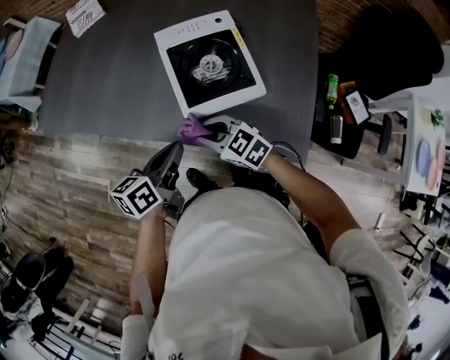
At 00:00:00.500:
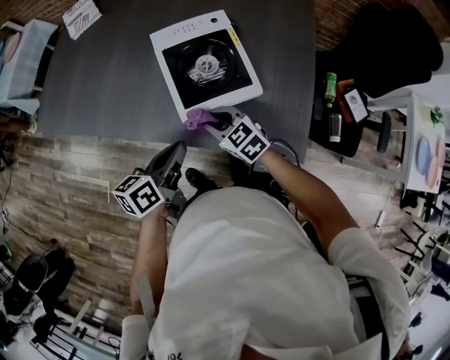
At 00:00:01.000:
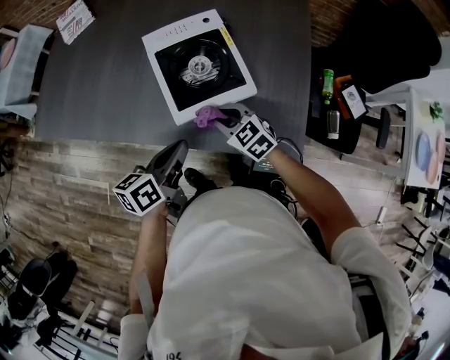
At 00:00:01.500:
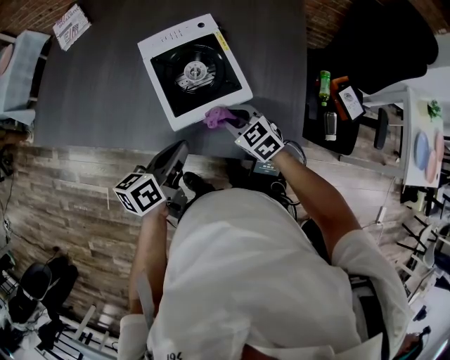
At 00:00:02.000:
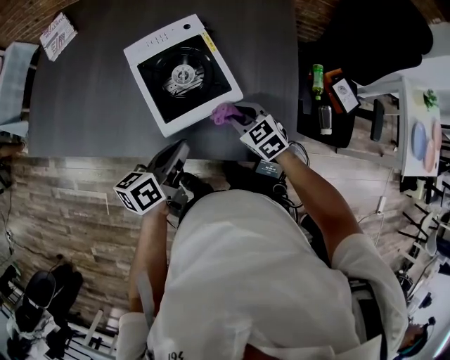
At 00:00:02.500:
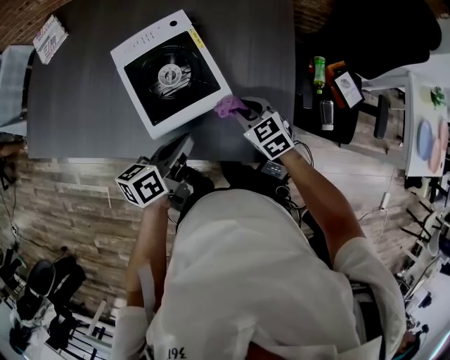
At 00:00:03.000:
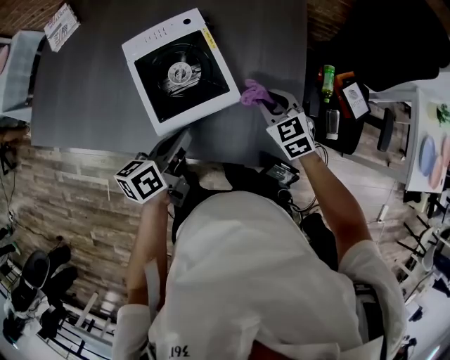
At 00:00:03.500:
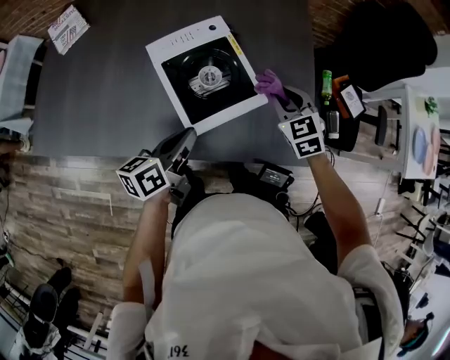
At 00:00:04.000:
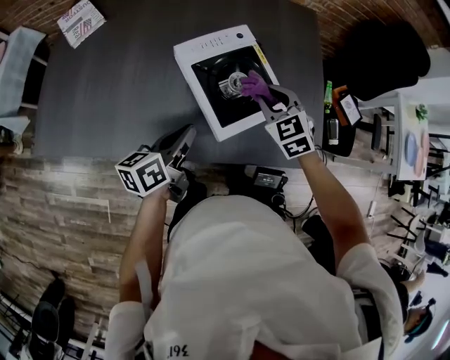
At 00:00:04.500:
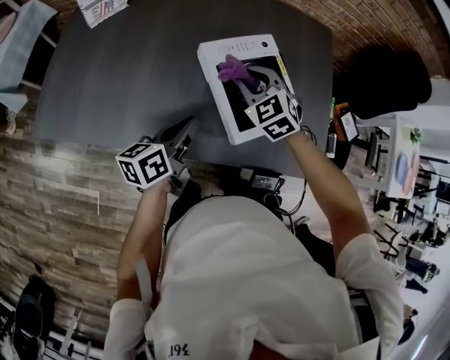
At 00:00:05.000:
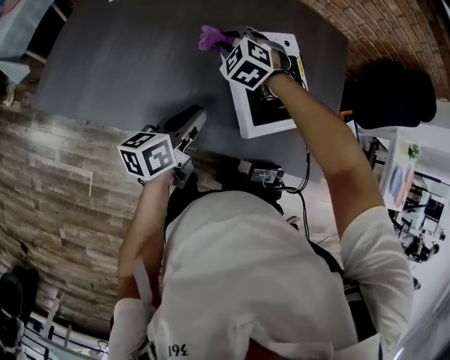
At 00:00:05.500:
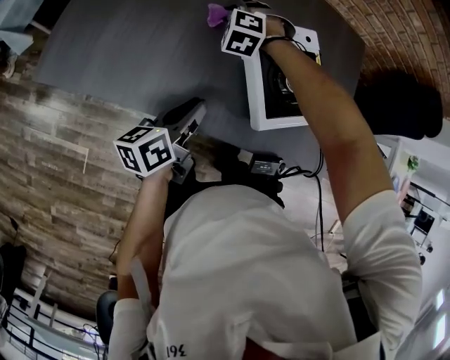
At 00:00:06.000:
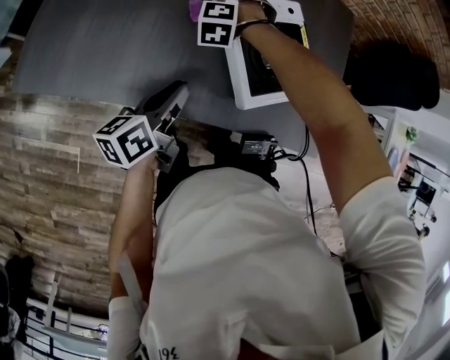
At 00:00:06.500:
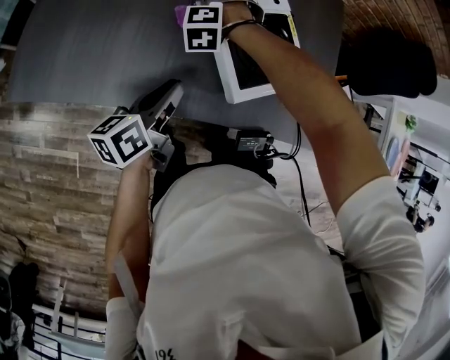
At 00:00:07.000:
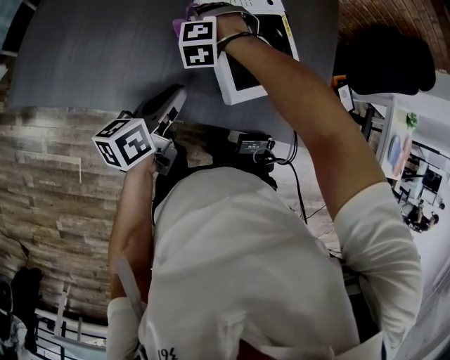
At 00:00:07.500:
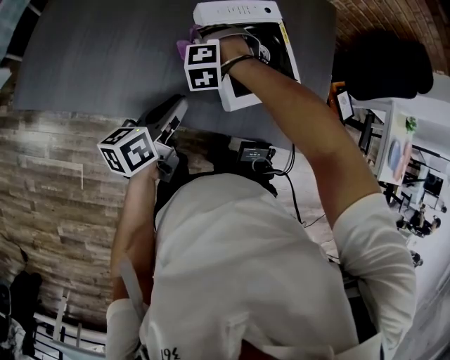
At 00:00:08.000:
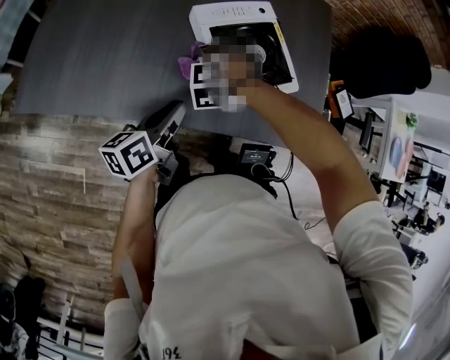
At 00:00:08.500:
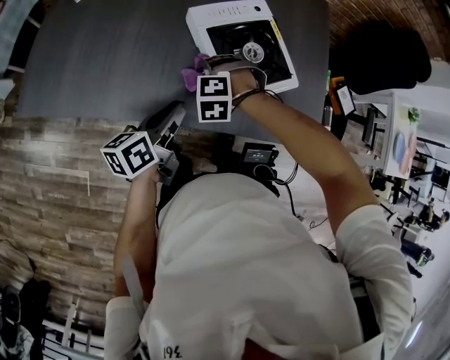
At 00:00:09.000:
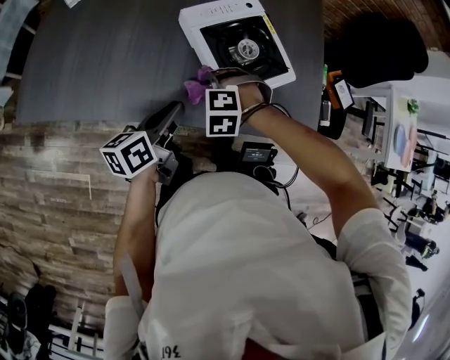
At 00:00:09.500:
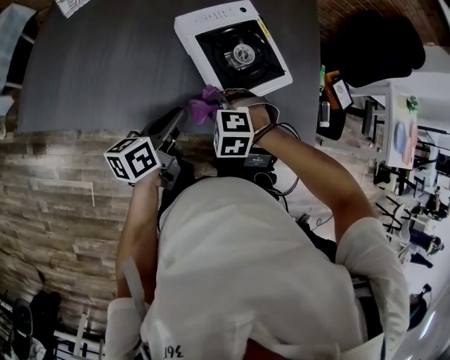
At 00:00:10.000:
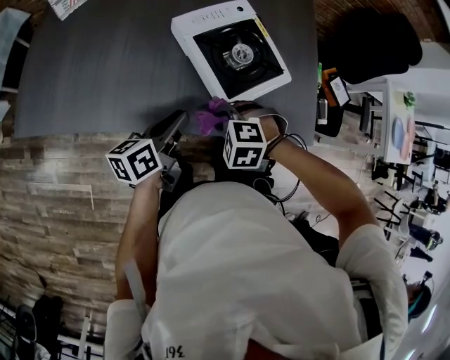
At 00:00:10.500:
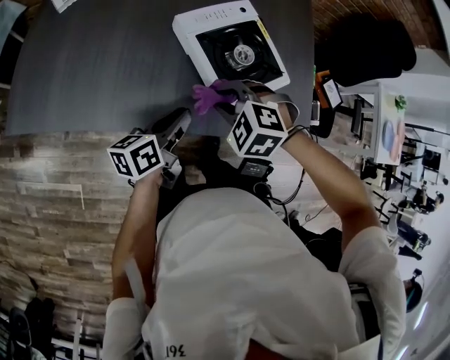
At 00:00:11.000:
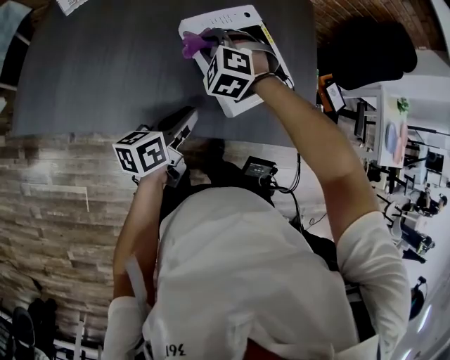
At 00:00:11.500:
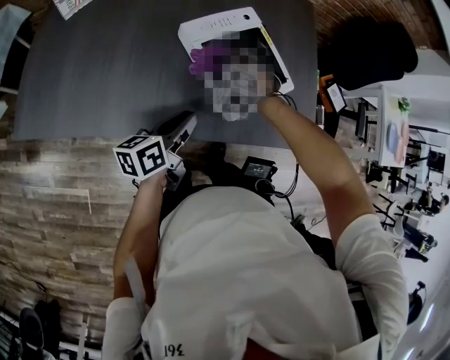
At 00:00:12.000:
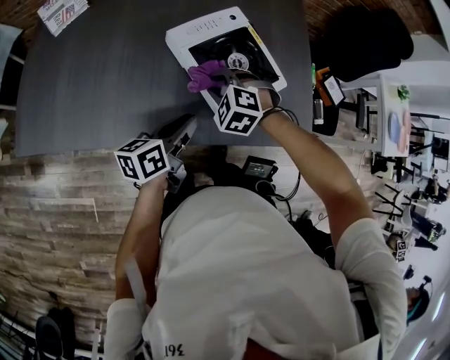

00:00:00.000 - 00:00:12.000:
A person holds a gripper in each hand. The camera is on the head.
00:00:00.000 - 00:00:02.000: The right gripper heads to the right, covering roughly 15 cm, and turns by roughly 30 degrees. The left gripper moves to the right, approximately 10 cm.
00:00:02.000 - 00:00:04.000: The right gripper is displaced upward, to the left and forward by approximately 15 cm, and rotates about 20 degrees. The left gripper heads to the left, covering approximately 15 cm.
00:00:04.000 - 00:00:06.000: The right gripper goes roughly 30 cm to the left and downward, and rolls counterclockwise, seen from behind, by about 60 degrees. The left gripper moves to the left, about 10 cm.
00:00:06.000 - 00:00:08.000: The right gripper goes approximately 15 cm backward and to the right. The left gripper moves roughly 5 cm.
00:00:08.000 - 00:00:10.000: The right gripper moves approximately 15 cm, and changes its angle by about 20 degrees.

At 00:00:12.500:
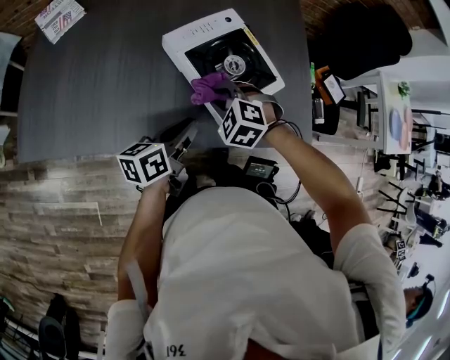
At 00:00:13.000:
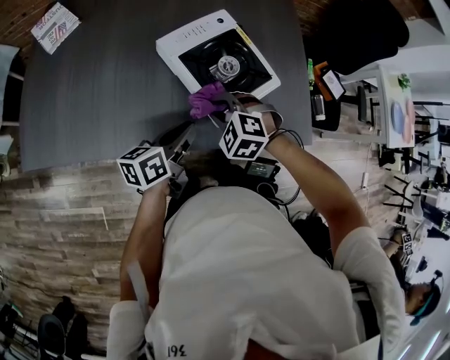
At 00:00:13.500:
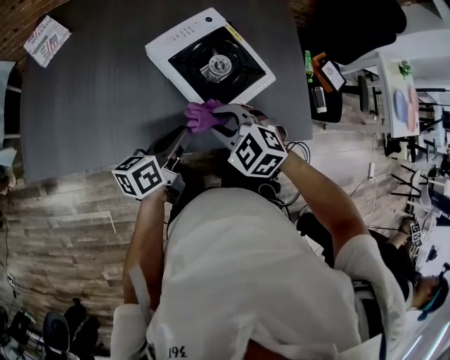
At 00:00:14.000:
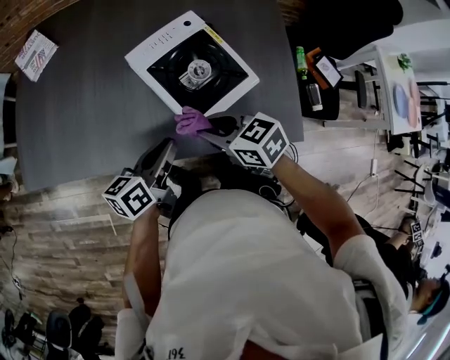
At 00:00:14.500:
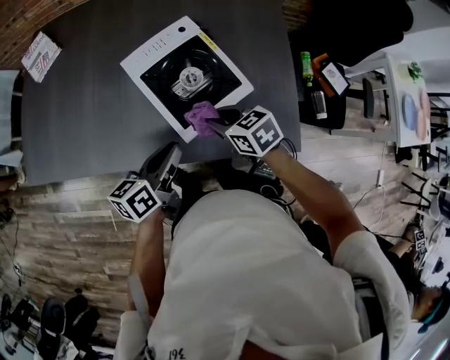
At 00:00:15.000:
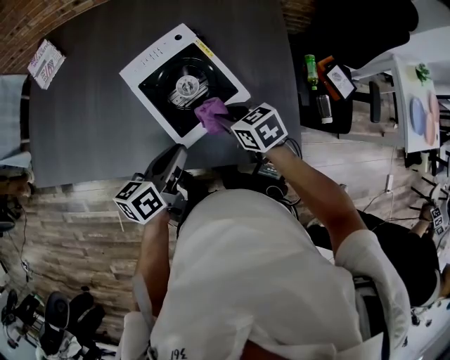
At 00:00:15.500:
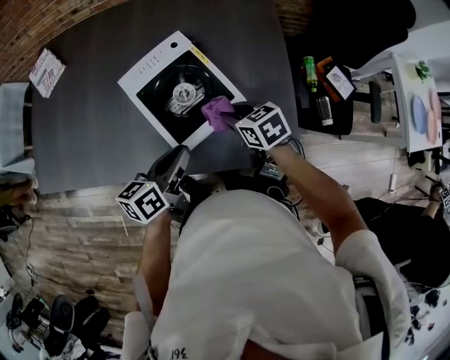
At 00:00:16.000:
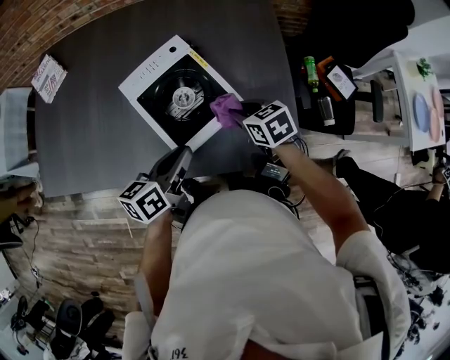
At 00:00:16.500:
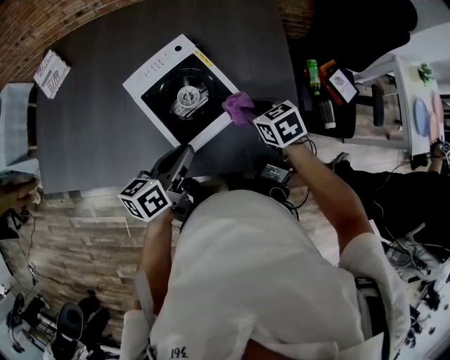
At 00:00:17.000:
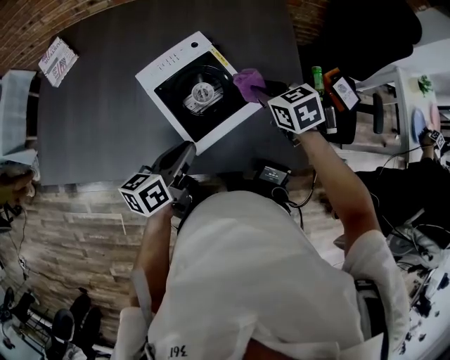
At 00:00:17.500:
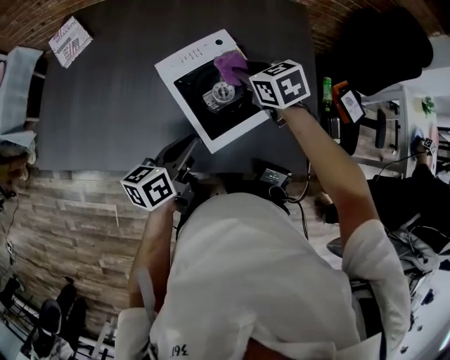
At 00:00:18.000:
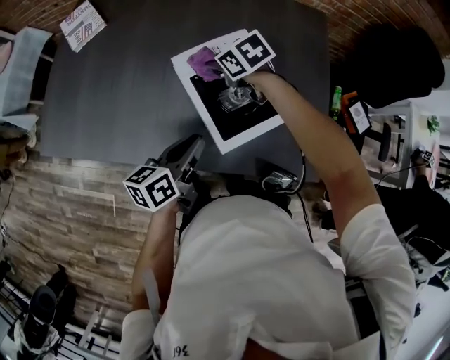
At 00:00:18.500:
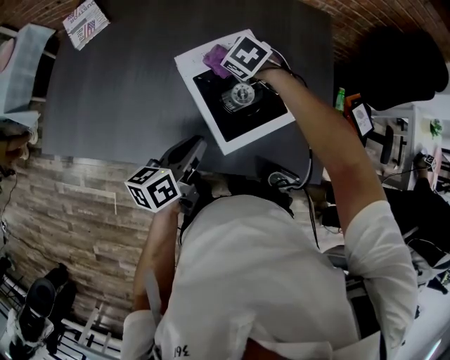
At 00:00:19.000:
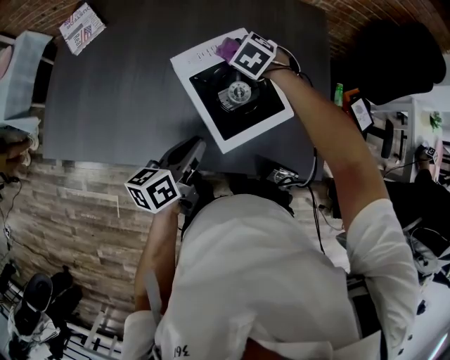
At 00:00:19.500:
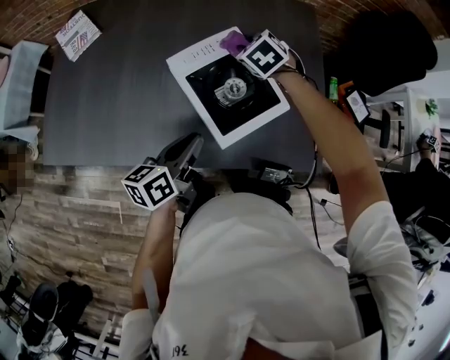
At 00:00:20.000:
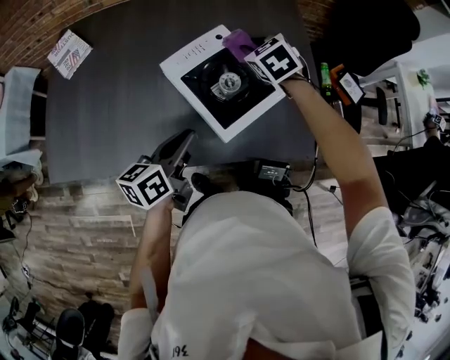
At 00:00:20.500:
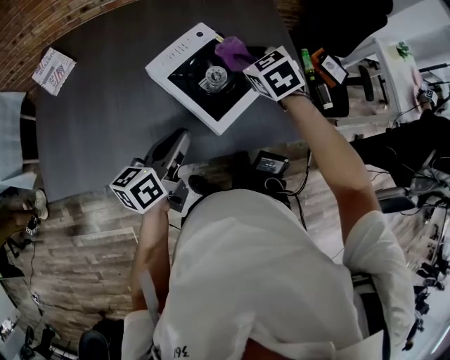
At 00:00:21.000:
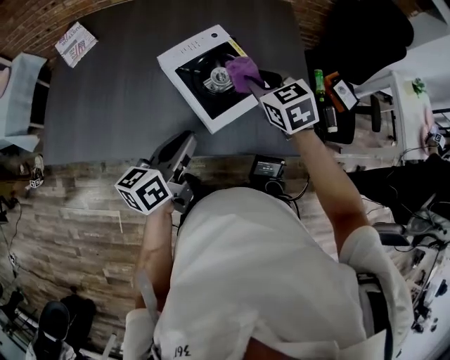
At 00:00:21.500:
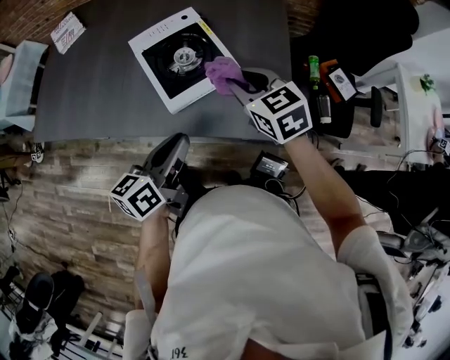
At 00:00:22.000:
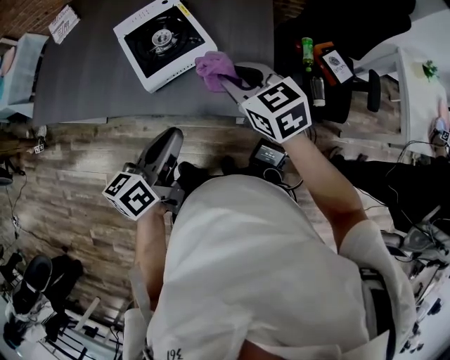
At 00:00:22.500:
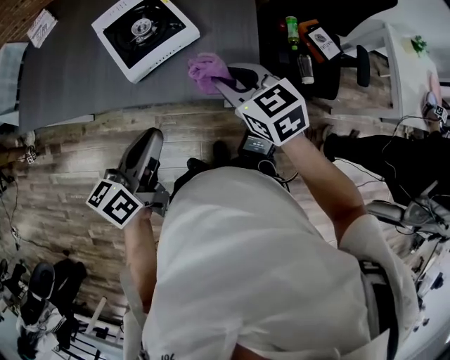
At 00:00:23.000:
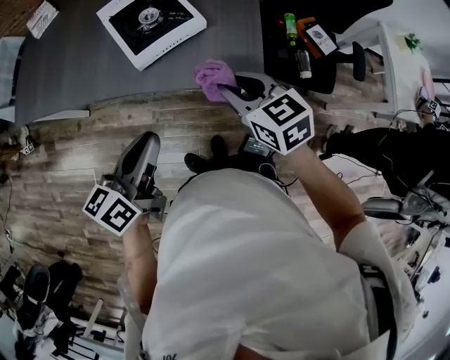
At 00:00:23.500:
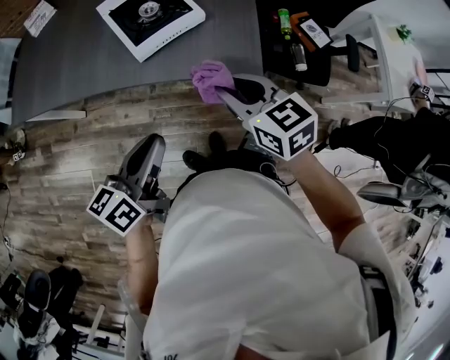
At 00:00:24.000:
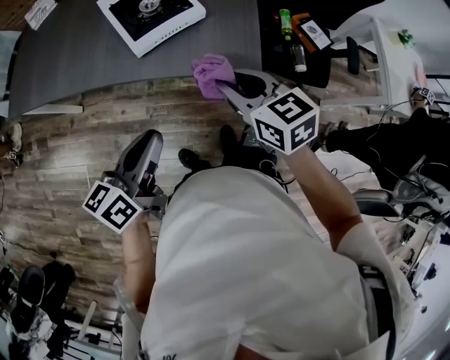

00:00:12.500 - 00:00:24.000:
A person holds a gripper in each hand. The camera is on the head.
00:00:12.500 - 00:00:14.500: The left gripper is displaced to the right by about 5 cm; the right gripper travels to the right by roughly 10 cm, and rotates around the line of its fingers by approximately 50 degrees, clockwise from behind.
00:00:14.500 - 00:00:16.500: The left gripper shifts approximately 5 cm to the right, while the right gripper heads to the right and forward, covering roughly 15 cm.
00:00:16.500 - 00:00:18.500: The left gripper is displaced to the left by some 10 cm, while the right gripper moves to the left and forward, approximately 25 cm, and swivels roughly 40 degrees.
00:00:18.500 - 00:00:20.000: The right gripper moves to the right and upward, some 15 cm, and turns by roughly 30 degrees.
00:00:20.000 - 00:00:22.000: The right gripper changes place by about 30 cm, and rotates about 30 degrees. Meanwhile the left gripper ends up some 30 cm from where it was.
00:00:22.000 - 00:00:24.000: The right gripper goes roughly 15 cm backward. The left gripper shifts roughly 10 cm backward and to the left.

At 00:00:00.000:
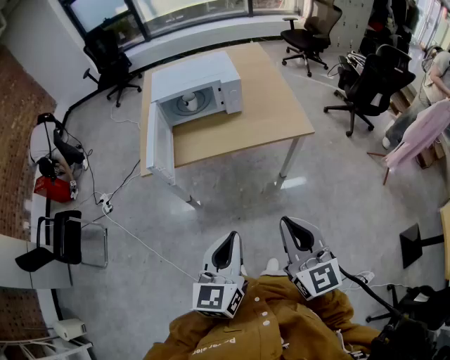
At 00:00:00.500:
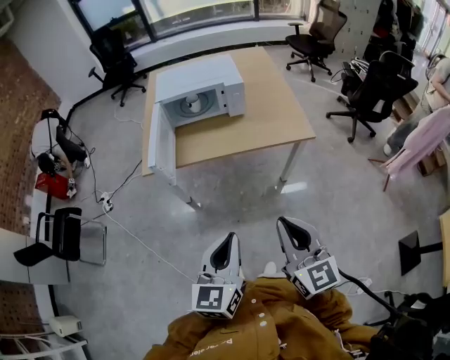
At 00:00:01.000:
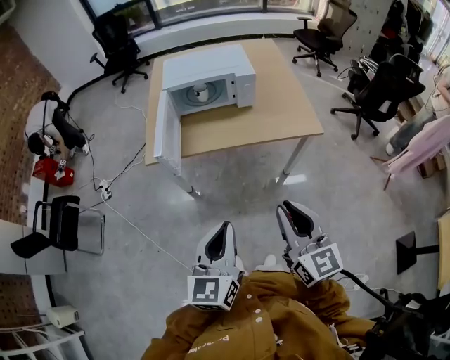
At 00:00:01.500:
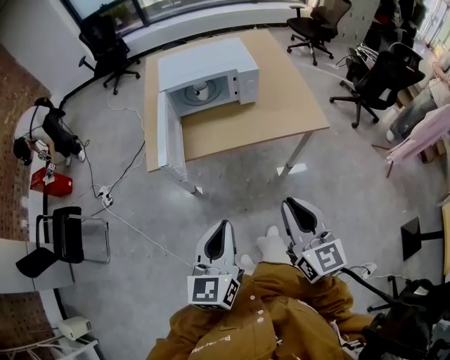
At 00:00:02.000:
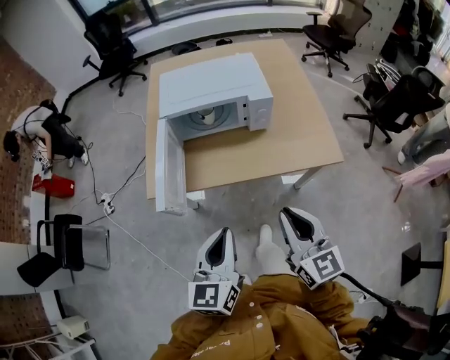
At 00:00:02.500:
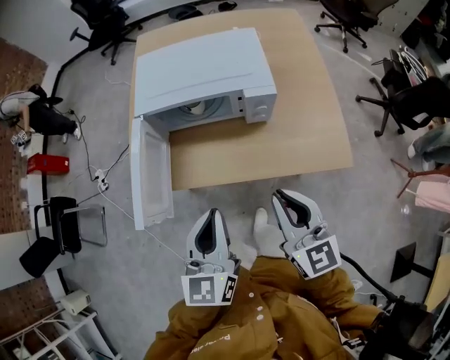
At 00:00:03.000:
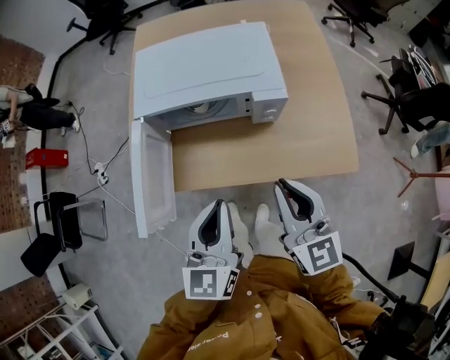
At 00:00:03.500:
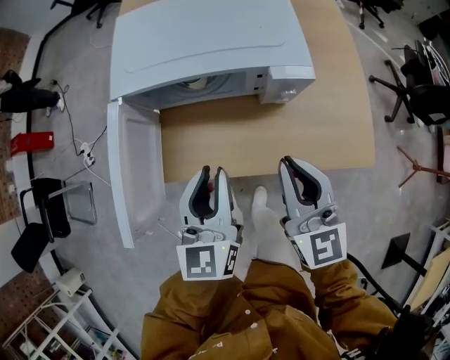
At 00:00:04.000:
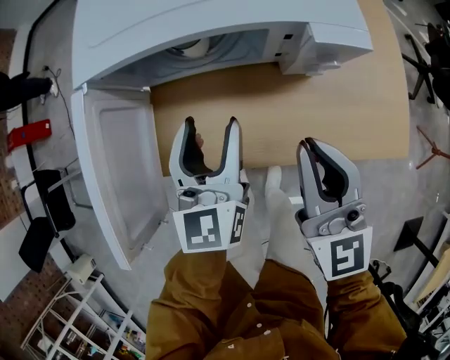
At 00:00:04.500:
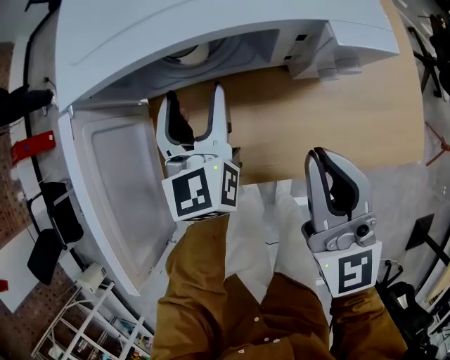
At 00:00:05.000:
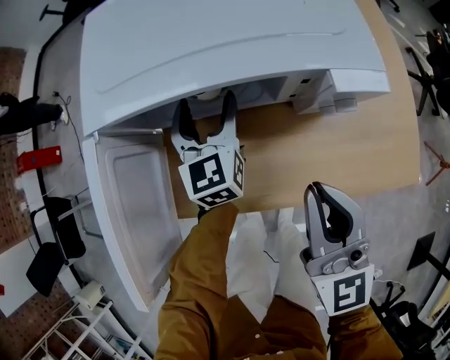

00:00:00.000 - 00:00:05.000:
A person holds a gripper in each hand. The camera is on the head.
00:00:00.000 - 00:00:02.500: The two grippers go approximately 40 cm forward.
00:00:02.500 - 00:00:05.000: The left gripper shifts roughly 40 cm forward and downward, and opens up. The right gripper travels forward and downward by roughly 20 cm.
